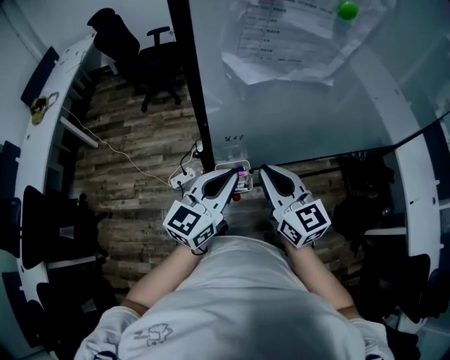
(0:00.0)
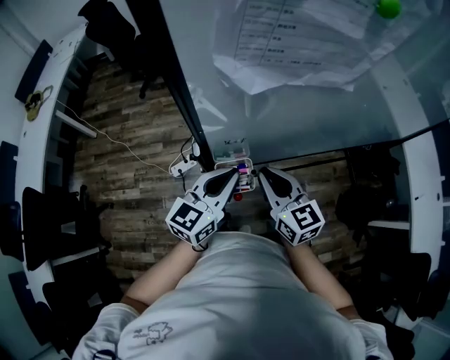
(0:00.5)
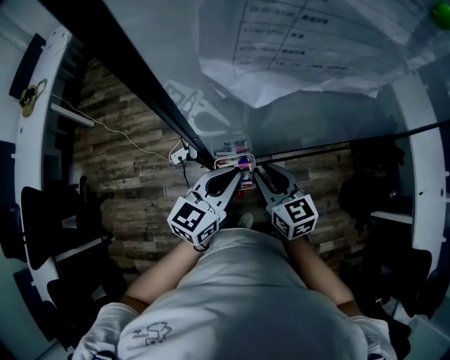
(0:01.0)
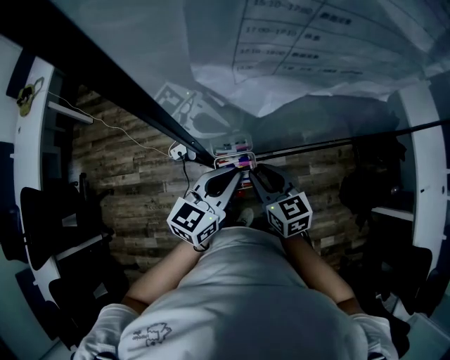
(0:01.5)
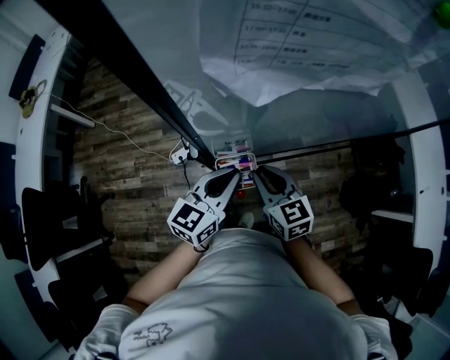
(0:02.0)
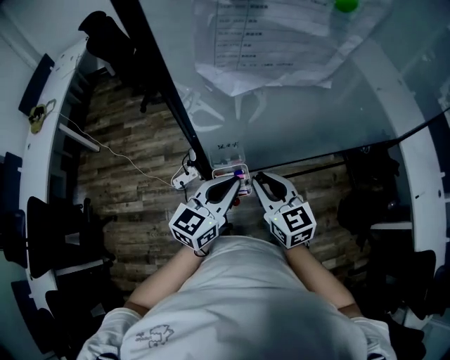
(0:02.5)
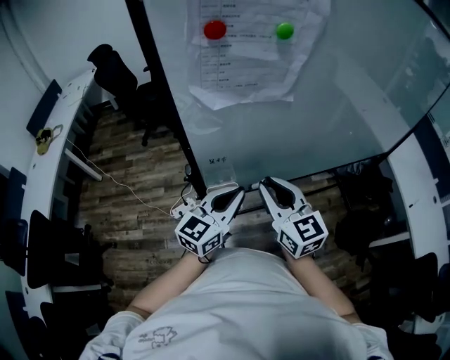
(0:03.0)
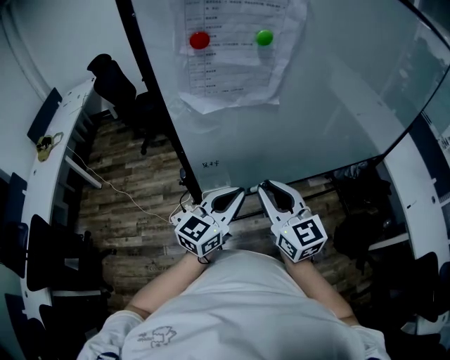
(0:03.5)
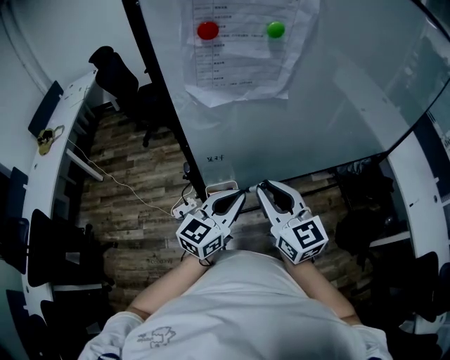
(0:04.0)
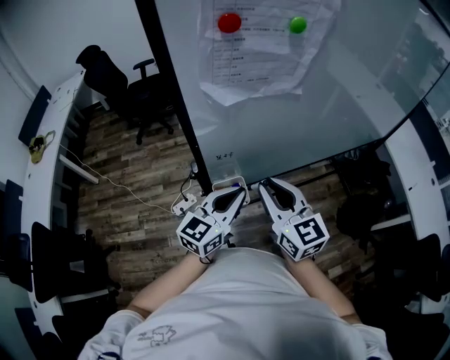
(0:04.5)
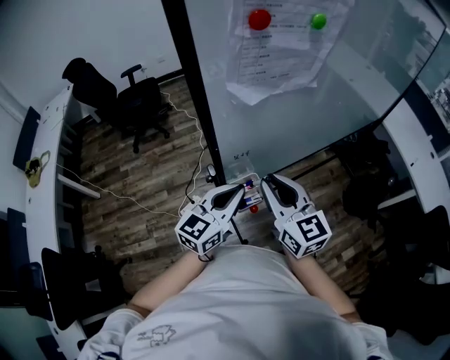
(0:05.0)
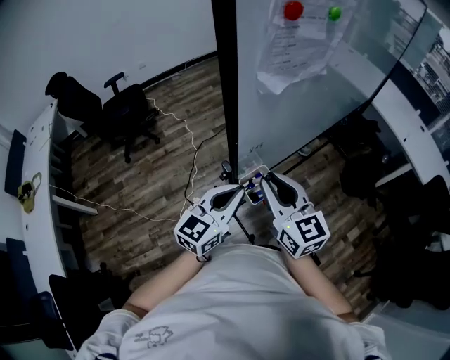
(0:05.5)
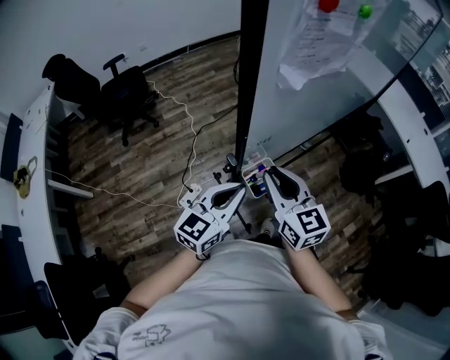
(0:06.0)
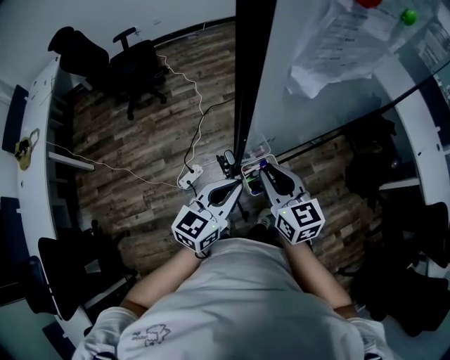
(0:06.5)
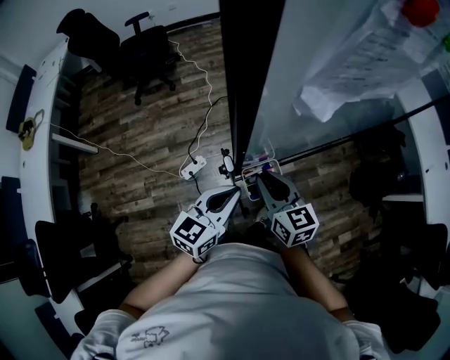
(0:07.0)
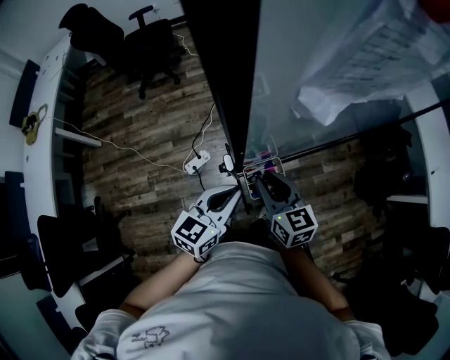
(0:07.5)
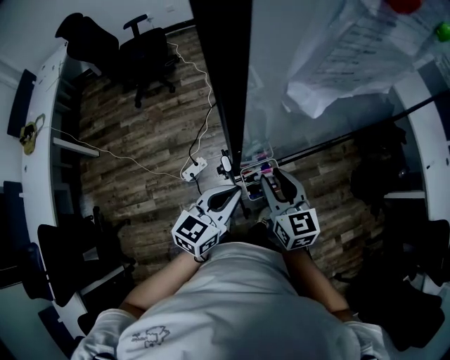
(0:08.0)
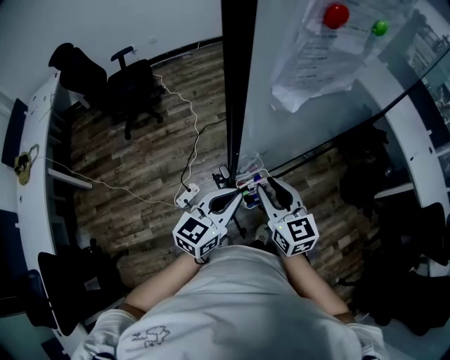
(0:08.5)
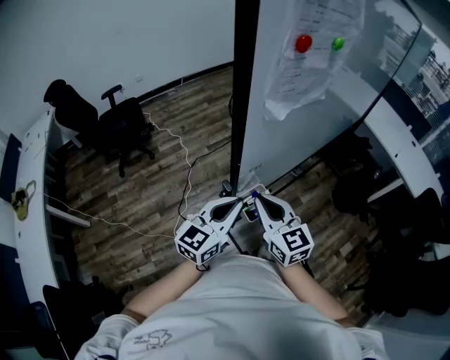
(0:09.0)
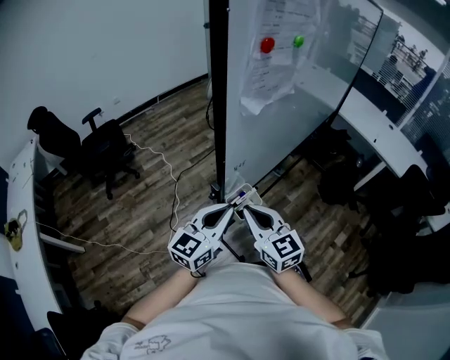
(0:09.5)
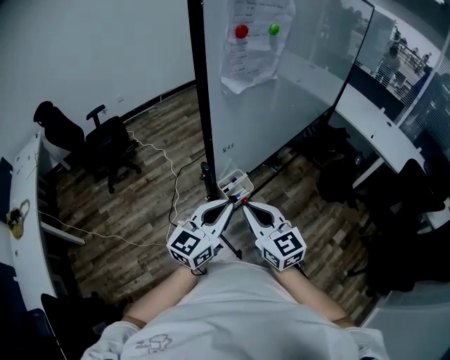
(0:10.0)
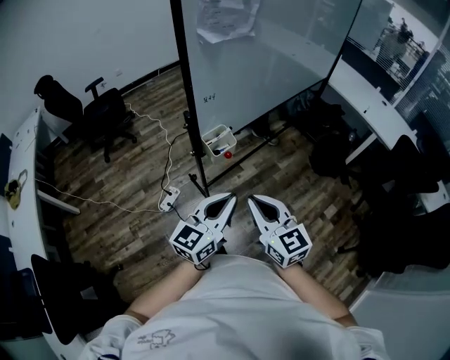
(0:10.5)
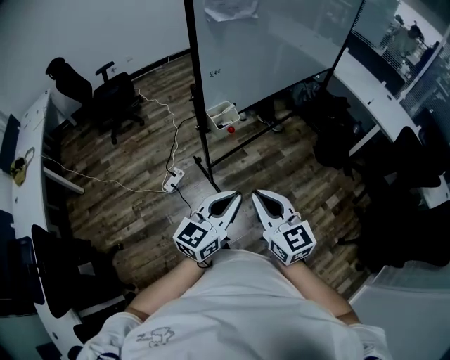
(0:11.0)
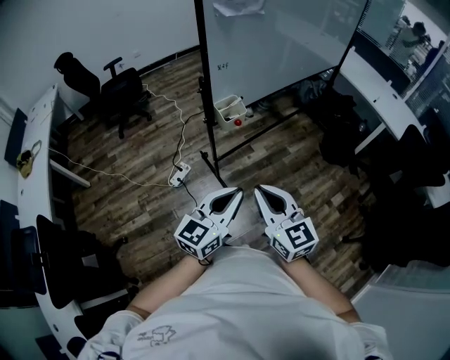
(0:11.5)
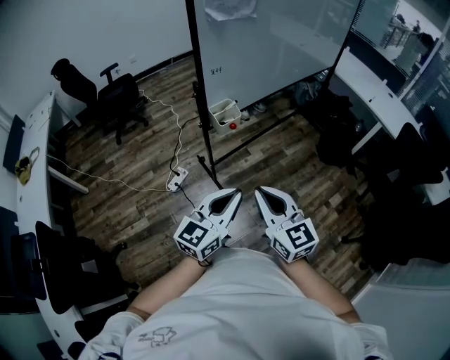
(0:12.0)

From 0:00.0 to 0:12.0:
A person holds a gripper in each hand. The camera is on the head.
From 0:00.0 to 0:02.0: The left gripper goes some 10 cm downward. The right gripper travels downward by about 15 cm.
From 0:02.0 to 0:04.0: The right gripper heads upward, covering some 20 cm, and swivels about 20 degrees, while the left gripper moves upward, to the right and backward, roughly 15 cm.
From 0:04.0 to 0:06.0: The left gripper shifts about 15 cm to the left, and swivels about 20 degrees, while the right gripper travels to the left and downward by approximately 15 cm, and changes its angle by approximately 20 degrees.
From 0:06.0 to 0:08.0: Both grippers travel together downward, approximately 10 cm.
From 0:08.0 to 0:10.0: The right gripper travels backward and upward by approximately 20 cm, and closes up. Meanwhile the left gripper moves upward and backward, about 15 cm, and swivels approximately 30 degrees.
From 0:10.0 to 0:12.0: The left gripper travels backward by some 25 cm. The right gripper moves backward and to the right, about 30 cm.

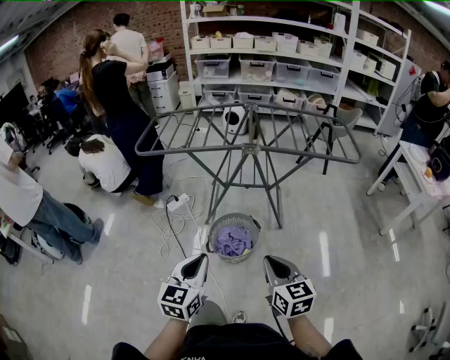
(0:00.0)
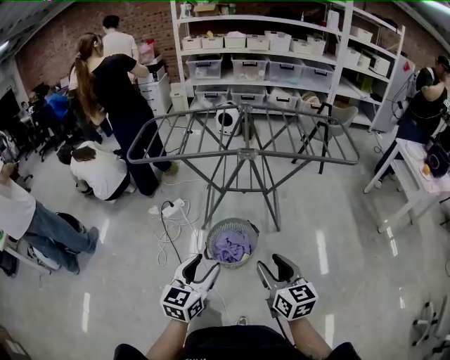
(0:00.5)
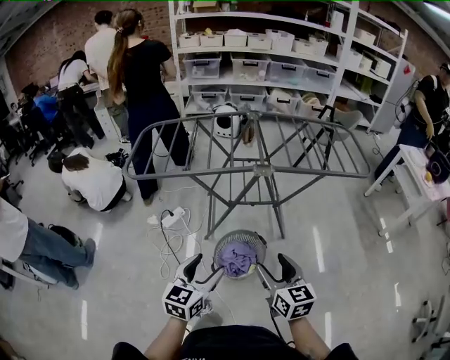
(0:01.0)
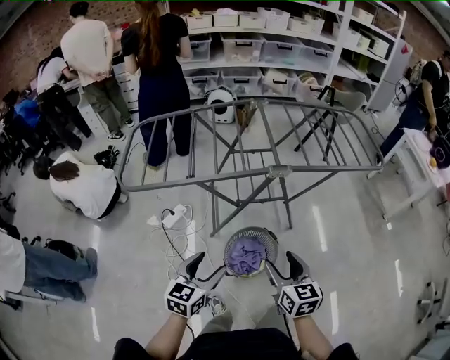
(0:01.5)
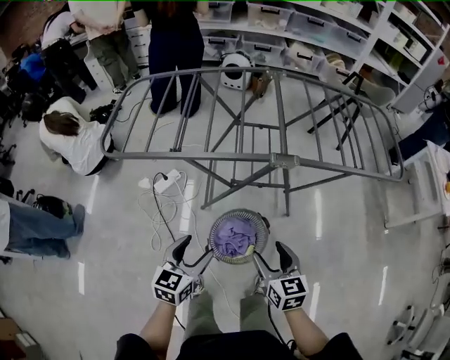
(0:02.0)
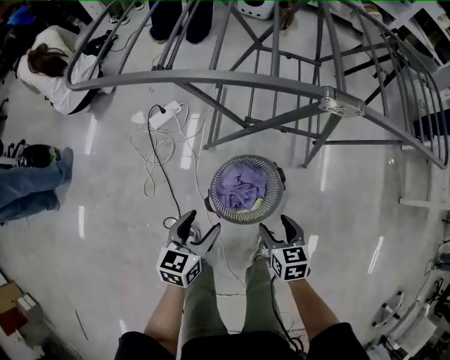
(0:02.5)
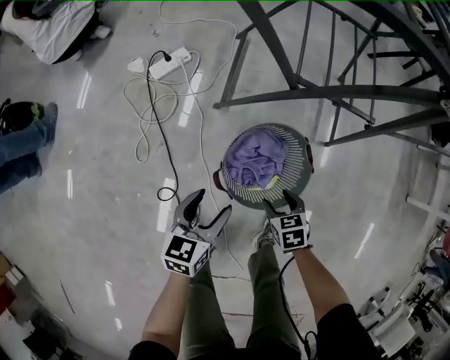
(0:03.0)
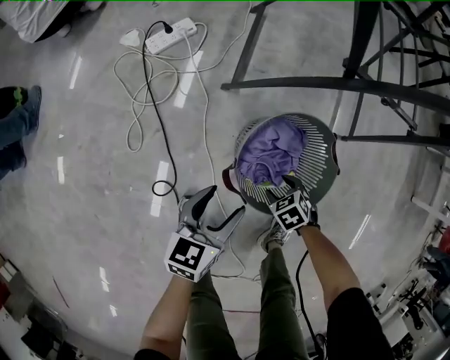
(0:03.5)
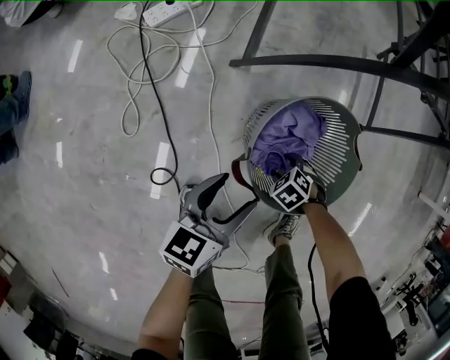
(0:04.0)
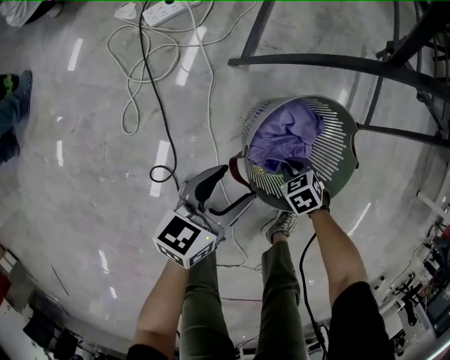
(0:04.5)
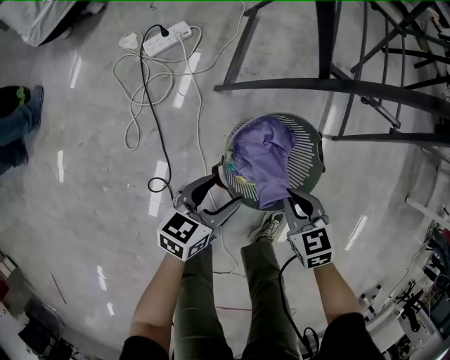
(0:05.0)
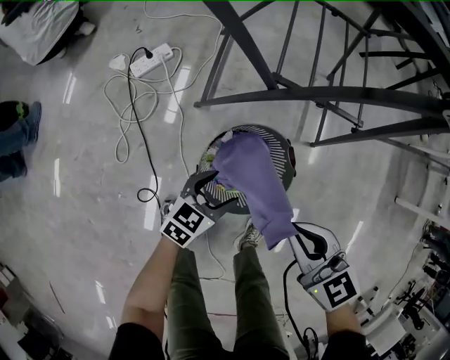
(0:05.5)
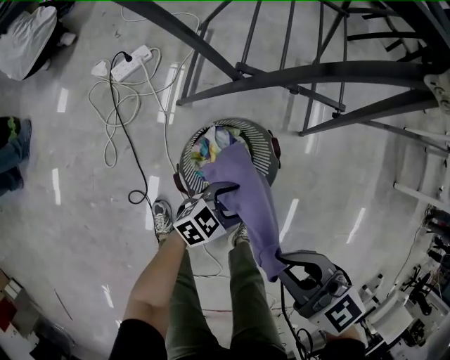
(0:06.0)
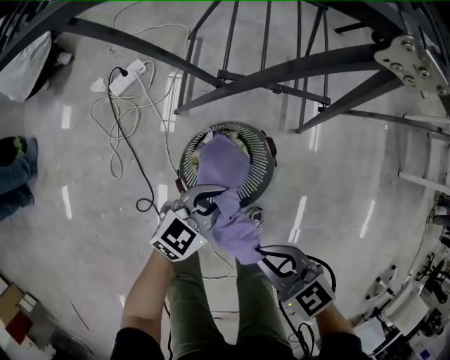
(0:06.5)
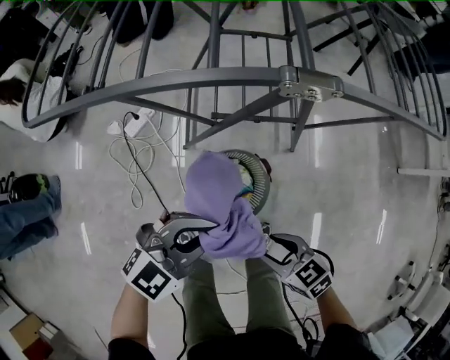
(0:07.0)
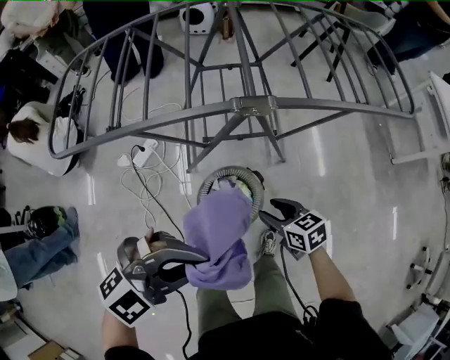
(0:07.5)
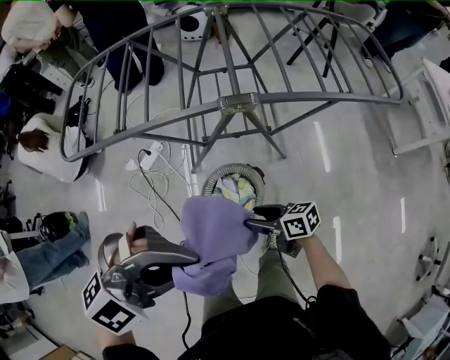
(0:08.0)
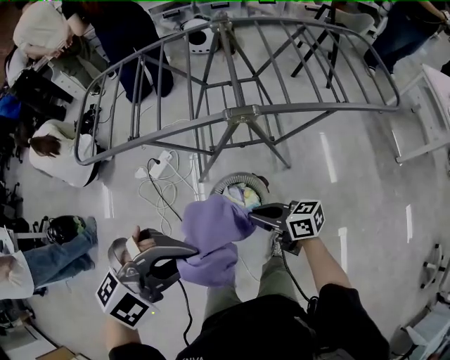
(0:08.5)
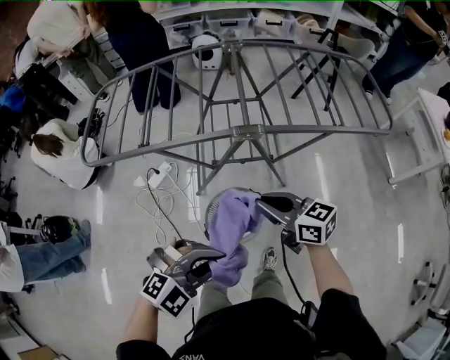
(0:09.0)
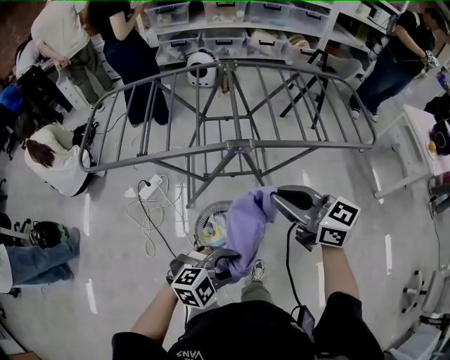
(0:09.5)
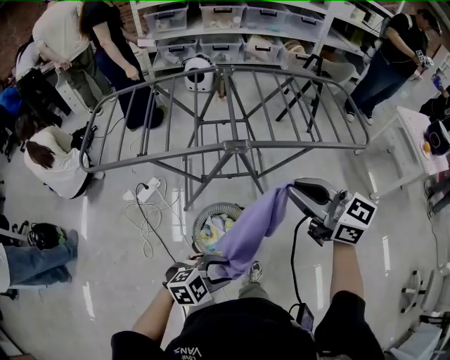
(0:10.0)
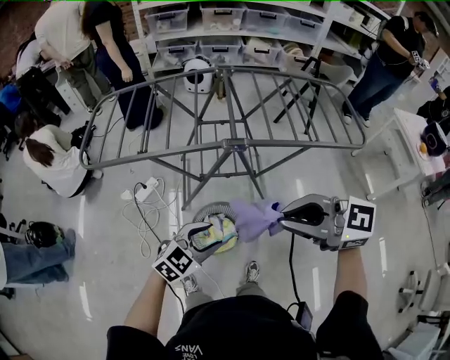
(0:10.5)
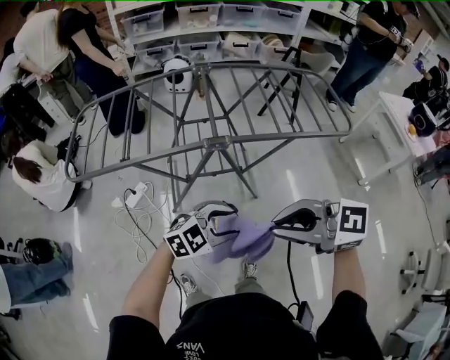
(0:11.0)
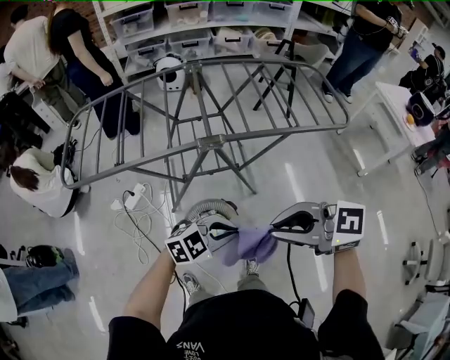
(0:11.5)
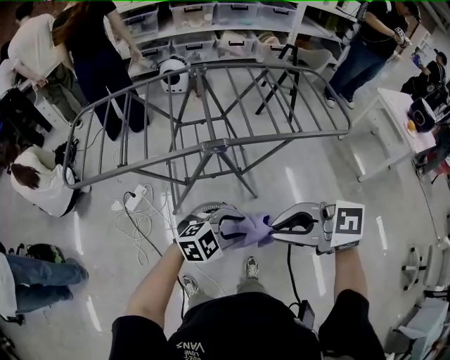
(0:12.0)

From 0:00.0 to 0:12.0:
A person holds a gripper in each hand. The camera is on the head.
From 0:00.0 to 0:02.0: The grippers both shift forward and downward by roughly 30 cm. The left gripper opens up. The right gripper opens its fingers.
From 0:02.0 to 0:04.0: Both grippers move downward, approximately 50 cm. The left gripper rotates some 20 degrees. The right gripper tilts its fingers some 60 degrees downward.
From 0:04.0 to 0:06.0: The left gripper shifts by some 25 cm, and rotates about 40 degrees. The right gripper shifts about 50 cm upward, angles its fingers upward, by roughly 60 degrees, and closes.
From 0:06.0 to 0:08.0: The right gripper moves approximately 5 cm downward and comes back, changes its angle by about 40 degrees, and opens its fingers. The left gripper moves upward, approximately 60 cm, rolls clockwise, seen from behind, by about 60 degrees, and closes.
From 0:08.0 to 0:10.0: The right gripper travels upward by some 35 cm, rotates around the line of its fingers by about 40 degrees, counterclockwise from behind, and closes its fingers, while the left gripper travels downward by some 20 cm, swivels about 30 degrees, and opens up.
From 0:10.0 to 0:12.0: The right gripper shifts by approximately 10 cm, and changes its angle by roughly 30 degrees. Meanwhile the left gripper moves some 15 cm, and closes and opens again.

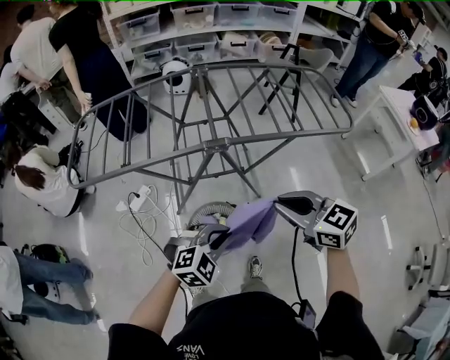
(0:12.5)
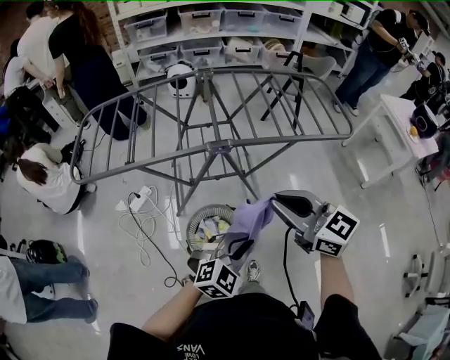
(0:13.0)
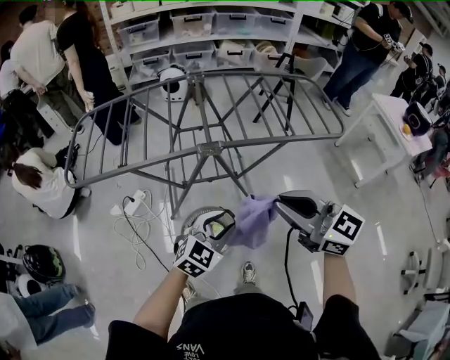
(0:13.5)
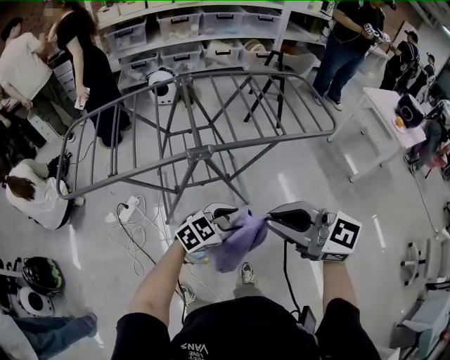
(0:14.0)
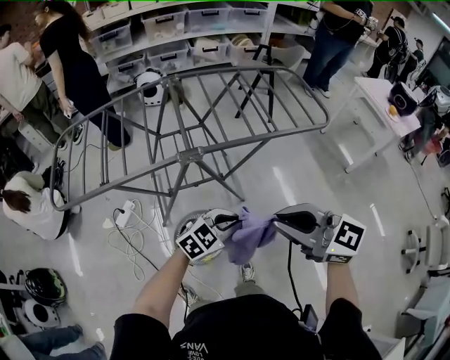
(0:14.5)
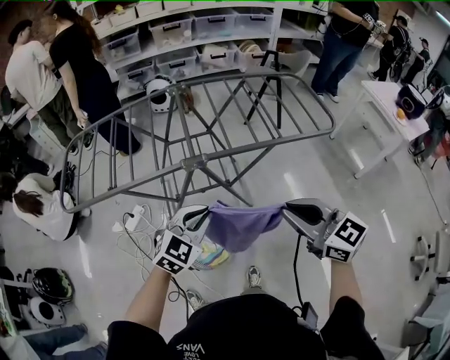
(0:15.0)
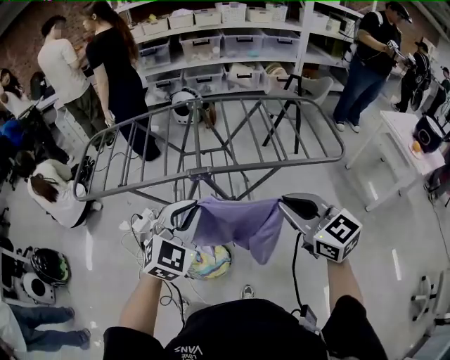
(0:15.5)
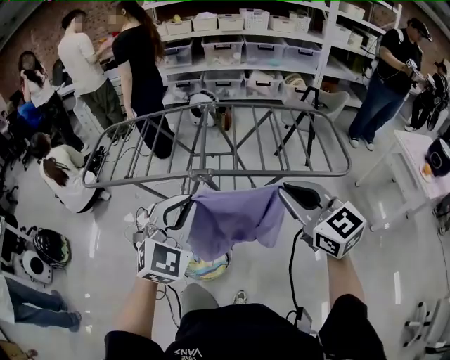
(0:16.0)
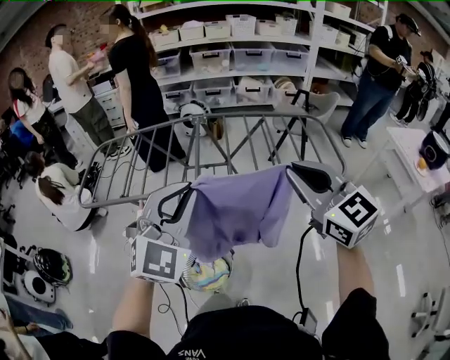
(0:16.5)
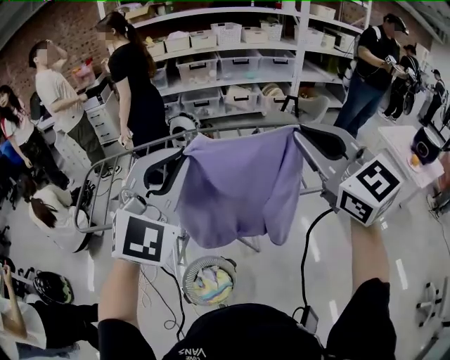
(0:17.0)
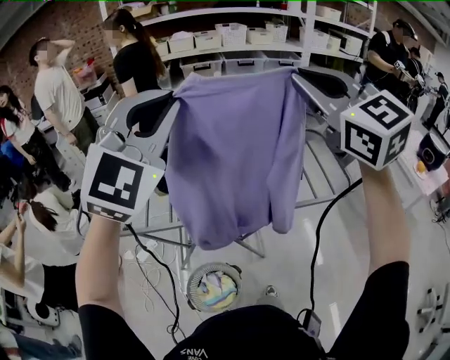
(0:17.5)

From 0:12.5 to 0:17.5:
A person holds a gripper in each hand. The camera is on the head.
From 0:12.5 to 0:15.0: The left gripper moves some 10 cm, changes its angle by about 20 degrees, and opens, then closes once more. Meanwhile the right gripper shifts by about 10 cm.
From 0:15.0 to 0:17.5: Both grippers move upward and forward, about 40 cm. The left gripper points its fingers some 30 degrees further upward. The right gripper changes its angle by about 30 degrees.
